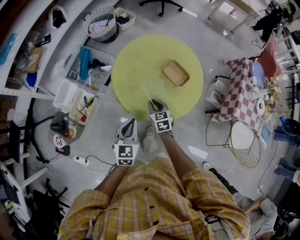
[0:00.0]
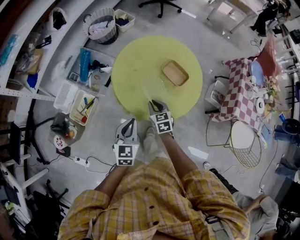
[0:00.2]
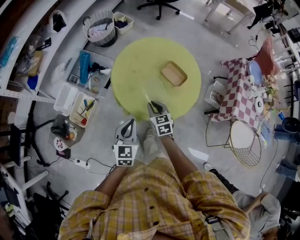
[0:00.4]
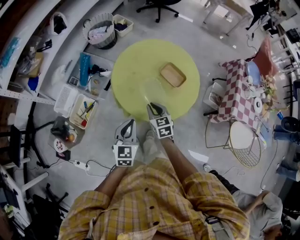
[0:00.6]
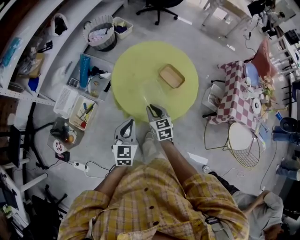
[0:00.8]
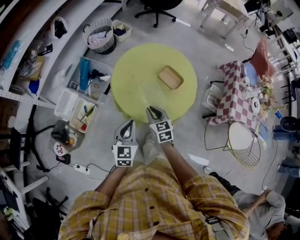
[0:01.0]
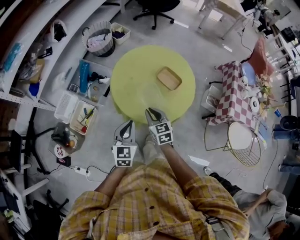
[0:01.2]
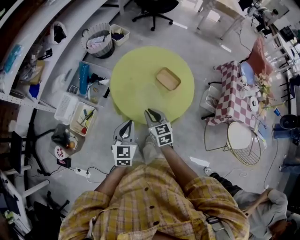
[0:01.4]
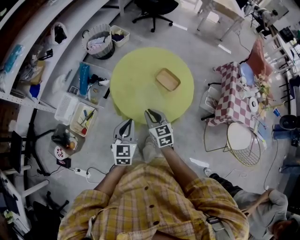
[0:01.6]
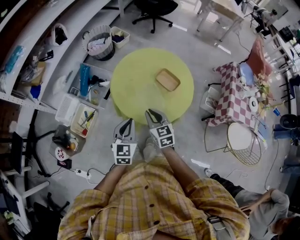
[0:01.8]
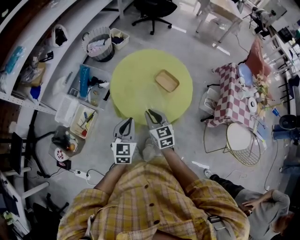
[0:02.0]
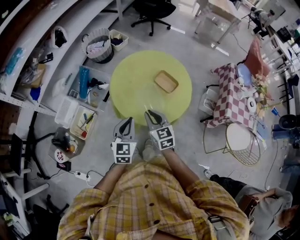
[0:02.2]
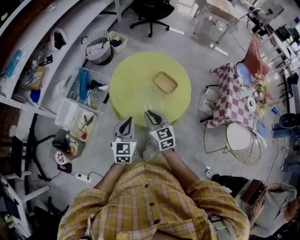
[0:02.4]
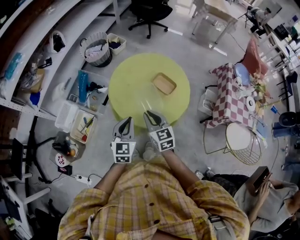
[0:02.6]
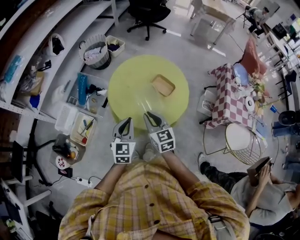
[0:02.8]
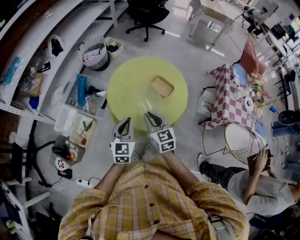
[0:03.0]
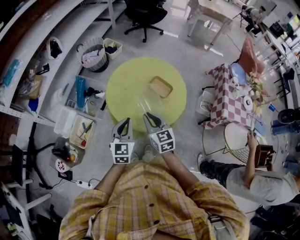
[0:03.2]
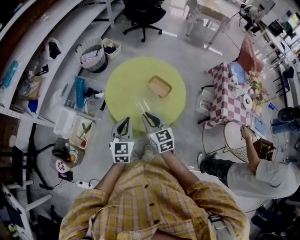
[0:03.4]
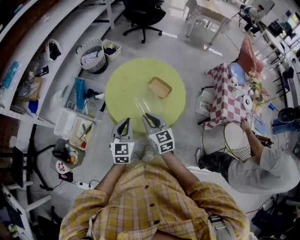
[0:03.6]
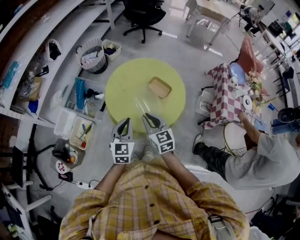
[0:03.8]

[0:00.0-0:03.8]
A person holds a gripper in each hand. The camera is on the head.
0:00.0 to 0:01.2: The right gripper heads upward and backward, covering approximately 10 cm.
0:01.2 to 0:02.6: The right gripper moves upward, some 10 cm.
0:02.6 to 0:03.8: There are only small adjustments of the grippers.

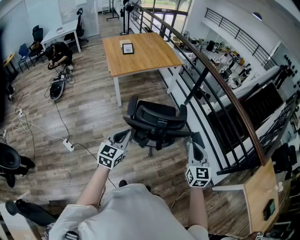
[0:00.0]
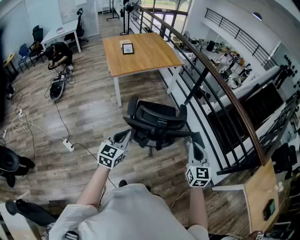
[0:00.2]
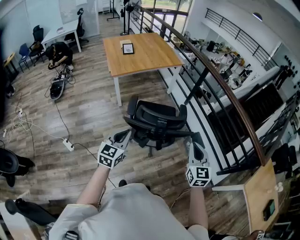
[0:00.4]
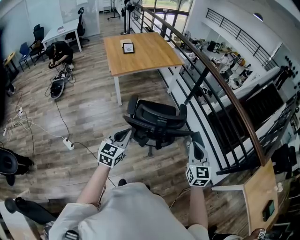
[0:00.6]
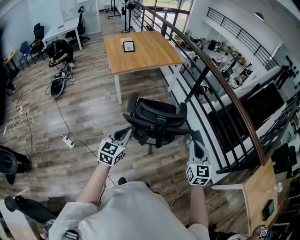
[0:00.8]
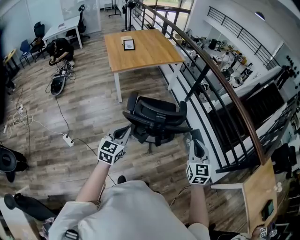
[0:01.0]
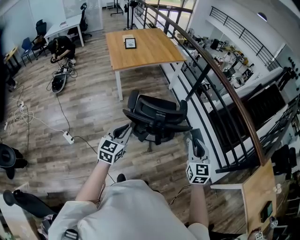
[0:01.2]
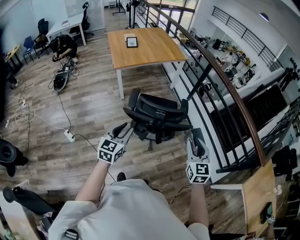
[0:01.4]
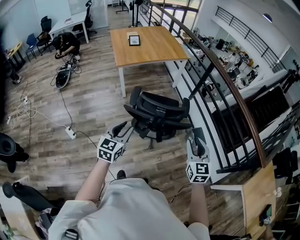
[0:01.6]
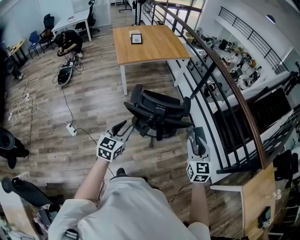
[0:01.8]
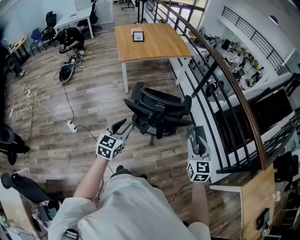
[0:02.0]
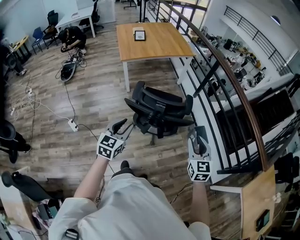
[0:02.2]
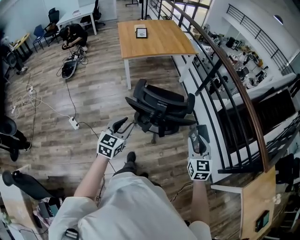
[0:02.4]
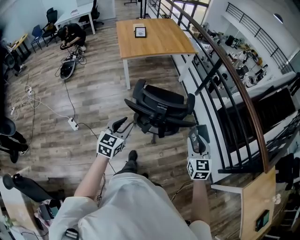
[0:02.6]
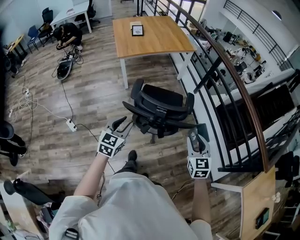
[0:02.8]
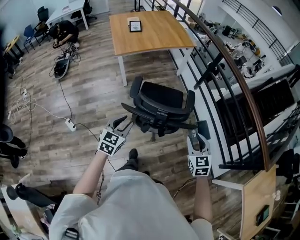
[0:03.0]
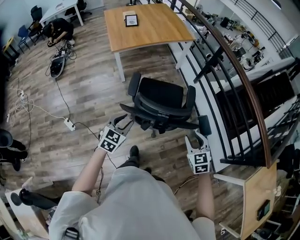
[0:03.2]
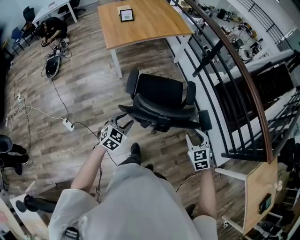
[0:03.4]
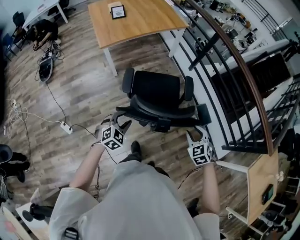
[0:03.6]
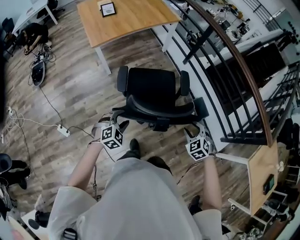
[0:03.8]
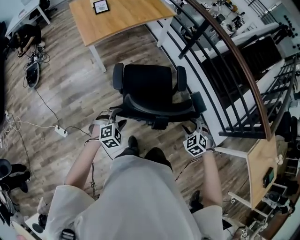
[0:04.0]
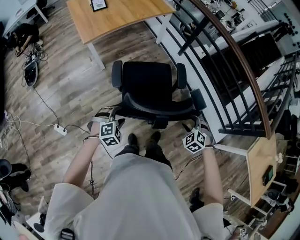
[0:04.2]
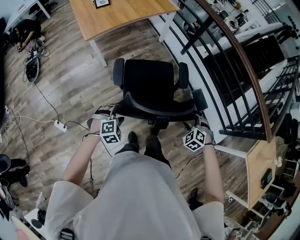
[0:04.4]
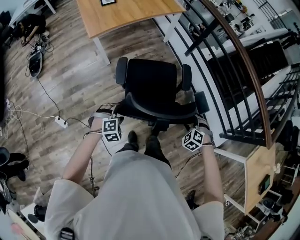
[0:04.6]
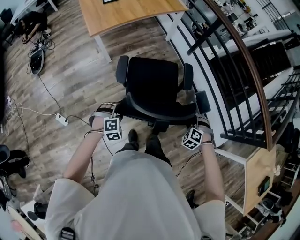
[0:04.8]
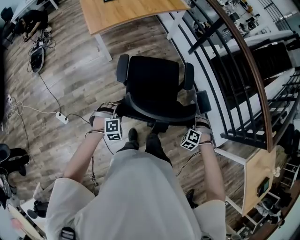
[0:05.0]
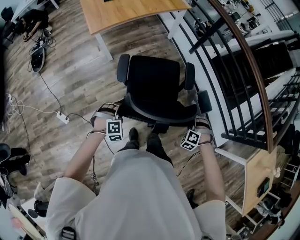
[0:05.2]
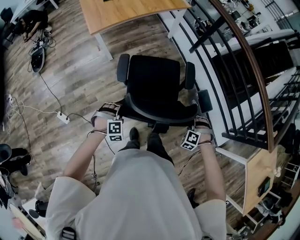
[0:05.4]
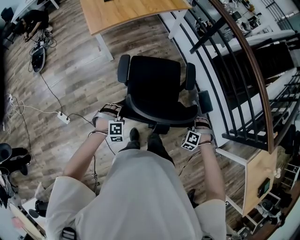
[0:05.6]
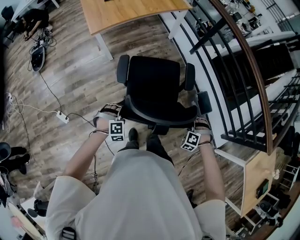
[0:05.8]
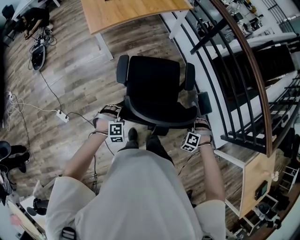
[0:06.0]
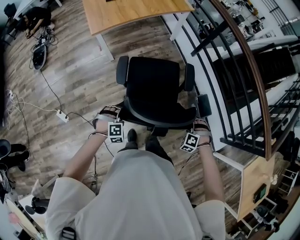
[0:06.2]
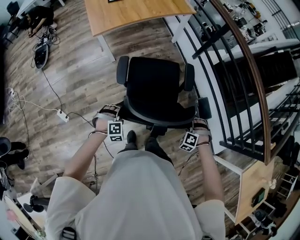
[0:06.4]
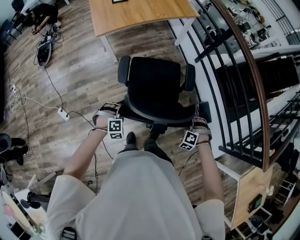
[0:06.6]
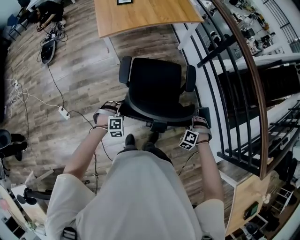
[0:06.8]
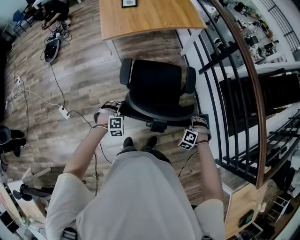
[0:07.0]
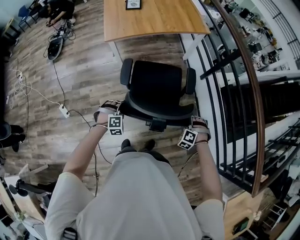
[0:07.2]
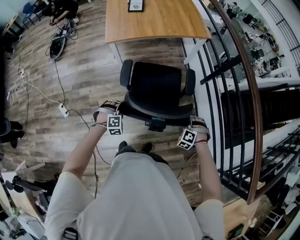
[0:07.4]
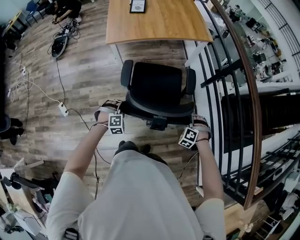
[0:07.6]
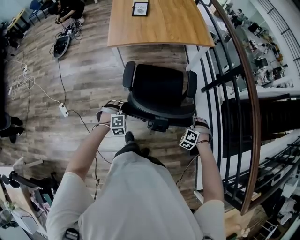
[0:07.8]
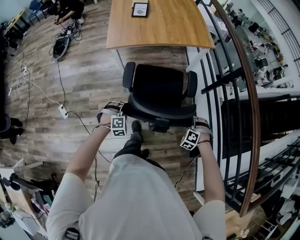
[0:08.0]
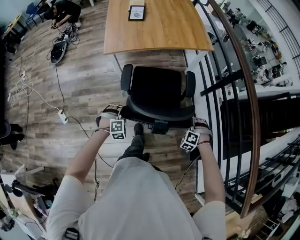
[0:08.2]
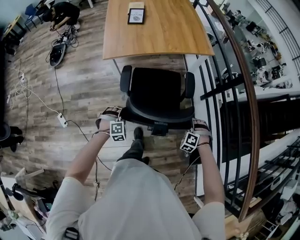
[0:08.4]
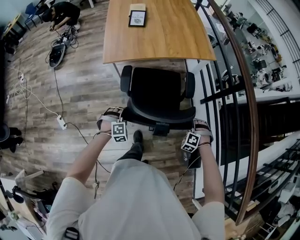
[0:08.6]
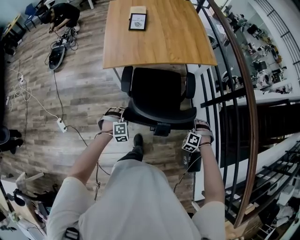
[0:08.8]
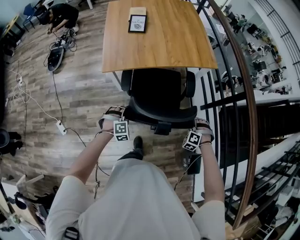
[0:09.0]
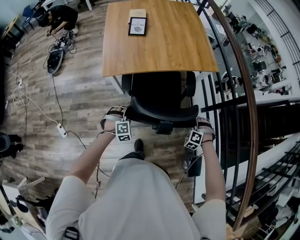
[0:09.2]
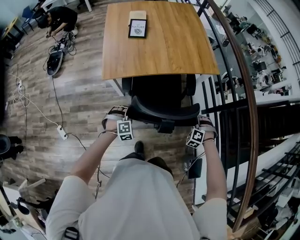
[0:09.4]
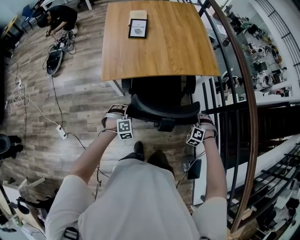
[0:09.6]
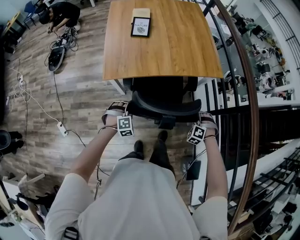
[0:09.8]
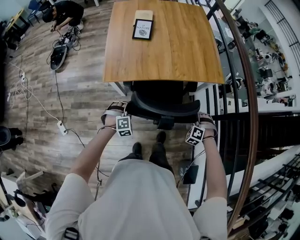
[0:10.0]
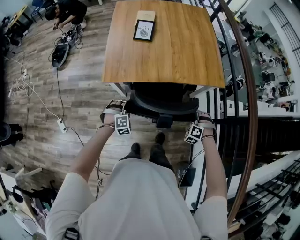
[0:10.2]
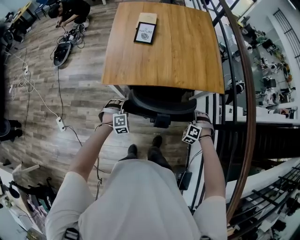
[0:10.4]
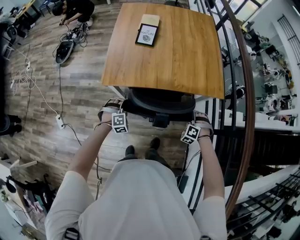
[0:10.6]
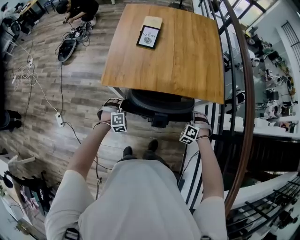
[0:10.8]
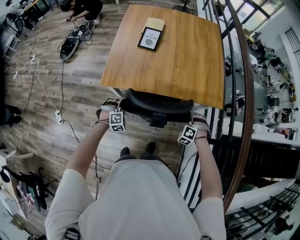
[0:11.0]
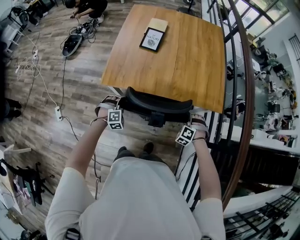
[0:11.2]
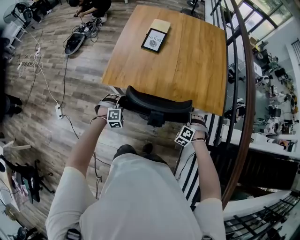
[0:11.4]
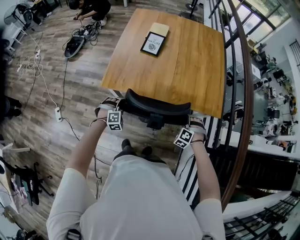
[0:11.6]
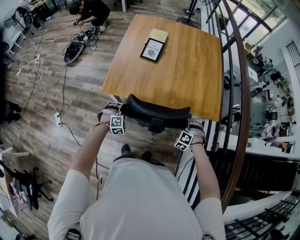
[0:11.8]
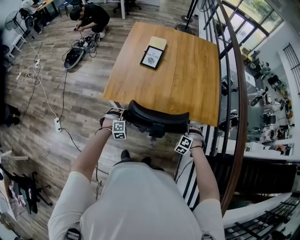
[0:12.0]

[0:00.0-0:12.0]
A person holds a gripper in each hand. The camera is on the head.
0:00.0 to 0:01.6: The right gripper opens. Meanwhile the left gripper opens.
0:01.6 to 0:03.0: The grippers both shift forward and downward by roughly 10 cm.
0:03.0 to 0:04.4: The grippers both shift downward and forward by approximately 20 cm. The right gripper angles its fingers downward, by about 30 degrees, and opens its fingers. Meanwhile the left gripper rolls clockwise, seen from behind, by some 50 degrees, and opens its fingers.
0:04.4 to 0:06.0: The grippers both shift downward by some 5 cm. The left gripper closes up. Meanwhile the right gripper changes its angle by some 30 degrees, and closes its fingers.
0:06.0 to 0:07.6: The grippers both shift forward by approximately 20 cm.
0:07.6 to 0:09.0: Both grippers move forward, approximately 25 cm.
0:09.0 to 0:10.4: The grippers both shift forward by some 20 cm.
0:10.4 to 0:12.0: The left gripper moves forward, approximately 5 cm. The right gripper shifts roughly 10 cm forward.

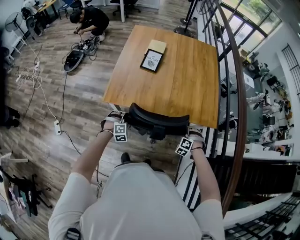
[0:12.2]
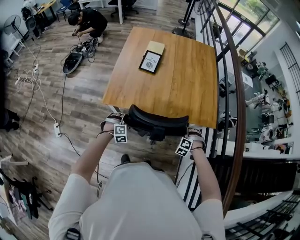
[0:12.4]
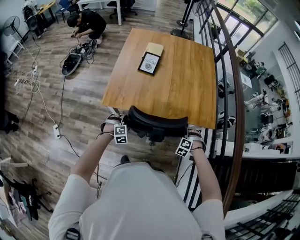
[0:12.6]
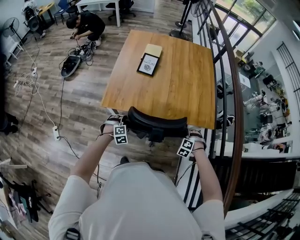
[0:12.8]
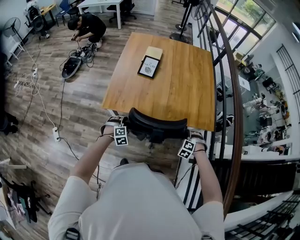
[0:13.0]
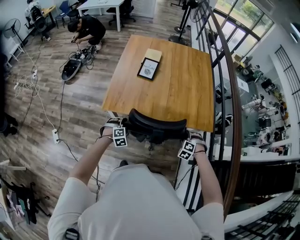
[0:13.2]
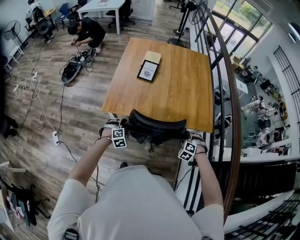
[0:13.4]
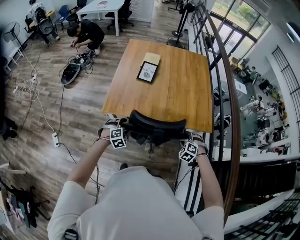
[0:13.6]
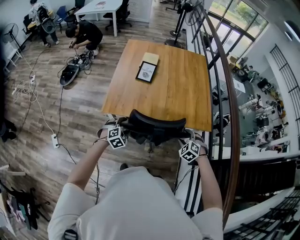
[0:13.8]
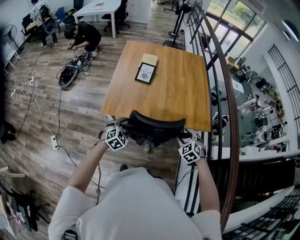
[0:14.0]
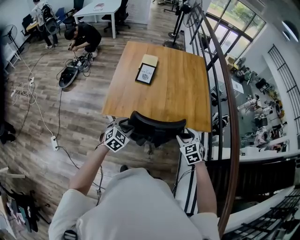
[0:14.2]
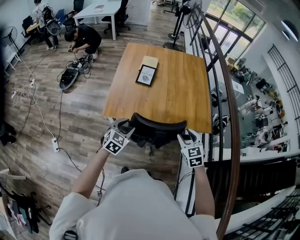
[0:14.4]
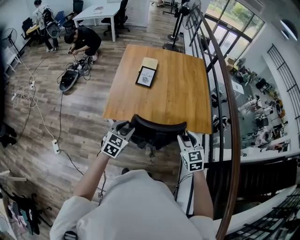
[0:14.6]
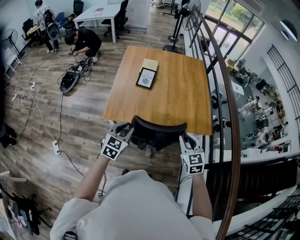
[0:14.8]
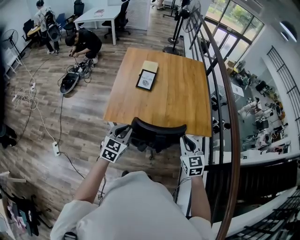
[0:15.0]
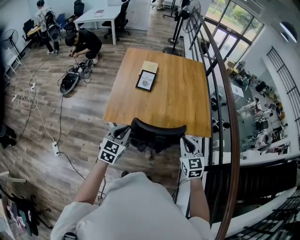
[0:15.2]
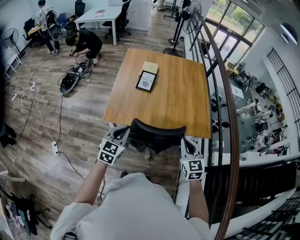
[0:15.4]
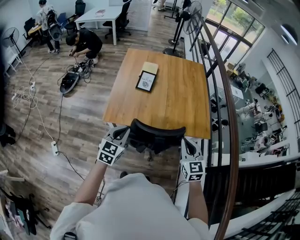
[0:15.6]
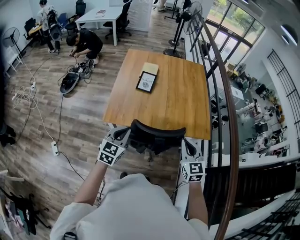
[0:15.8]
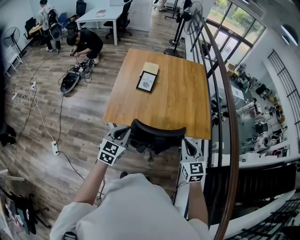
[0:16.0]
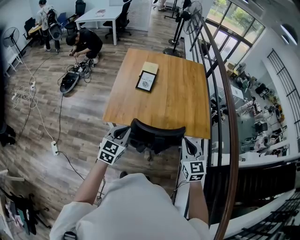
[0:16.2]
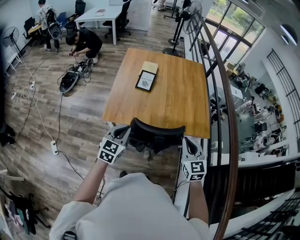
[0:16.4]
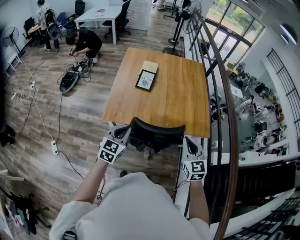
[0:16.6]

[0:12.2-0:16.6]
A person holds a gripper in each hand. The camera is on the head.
0:12.2 to 0:13.6: Both grippers travel together upward, some 5 cm. The left gripper opens up. Meanwhile the right gripper opens its fingers.
0:13.6 to 0:15.2: Both grippers move upward, approximately 20 cm. The right gripper tilts its fingers approximately 40 degrees upward, and closes its fingers. The left gripper tips its fingers upward by some 30 degrees, and closes.
0:15.2 to 0:16.6: The grippers stay close to where they were, moving slightly.

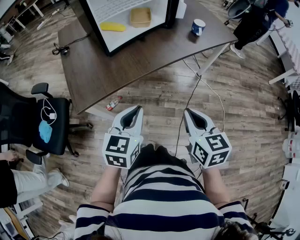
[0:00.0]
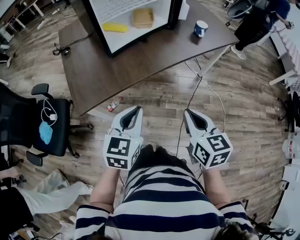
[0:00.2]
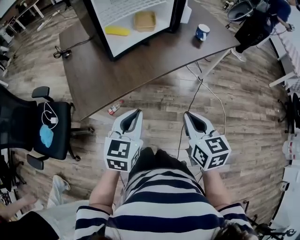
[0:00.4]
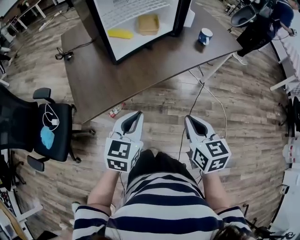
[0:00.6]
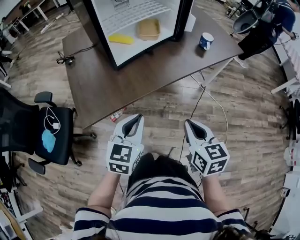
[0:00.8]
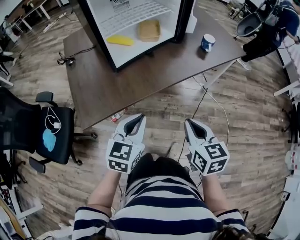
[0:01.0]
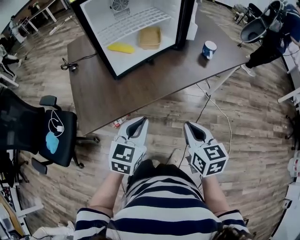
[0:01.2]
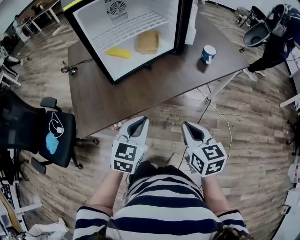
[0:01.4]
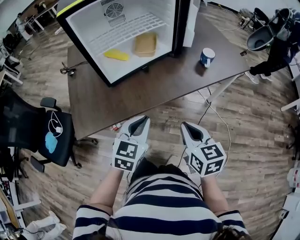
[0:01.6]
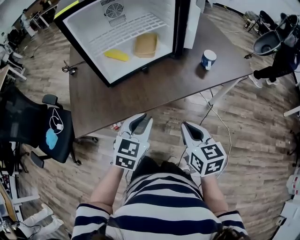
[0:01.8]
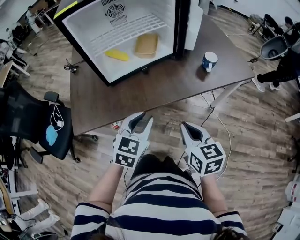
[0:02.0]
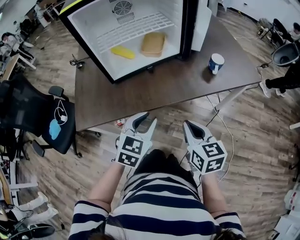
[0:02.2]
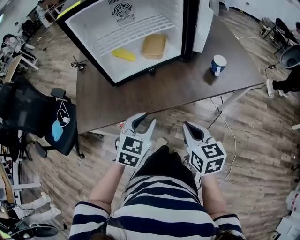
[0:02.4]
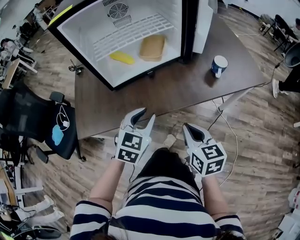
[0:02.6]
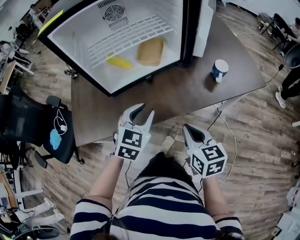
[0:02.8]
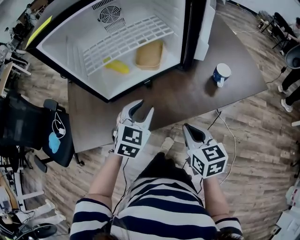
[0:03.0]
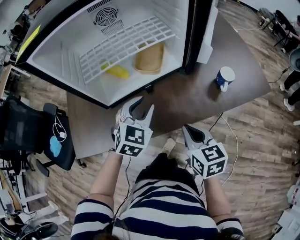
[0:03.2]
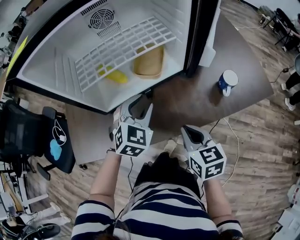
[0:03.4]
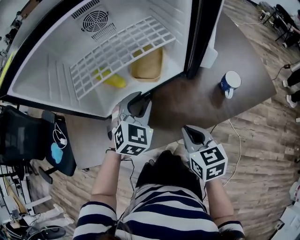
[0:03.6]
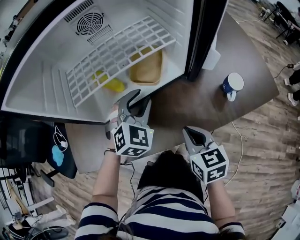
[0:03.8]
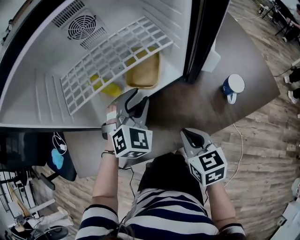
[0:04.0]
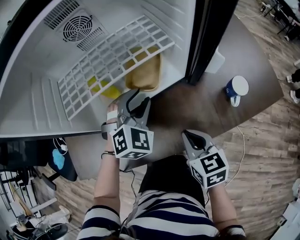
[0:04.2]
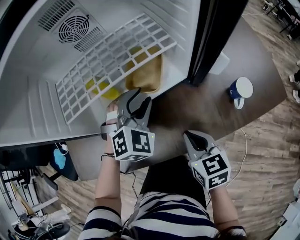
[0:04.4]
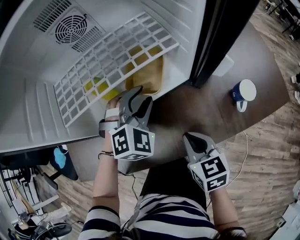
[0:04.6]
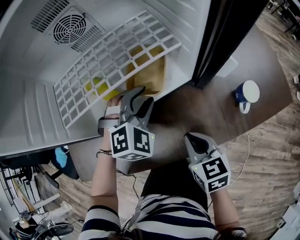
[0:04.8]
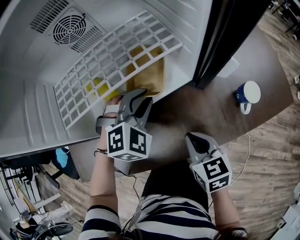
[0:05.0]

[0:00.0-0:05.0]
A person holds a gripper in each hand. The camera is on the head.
0:00.0 to 0:01.6: The right gripper moves forward, some 15 cm. Meanwhile the left gripper shifts about 15 cm forward and to the right.
0:01.6 to 0:03.4: Both grippers travel together forward, roughly 25 cm. The left gripper changes its angle by about 20 degrees.
0:03.4 to 0:05.0: The right gripper goes some 10 cm forward and downward. Meanwhile the left gripper is displaced forward by approximately 10 cm, and turns by about 30 degrees.
